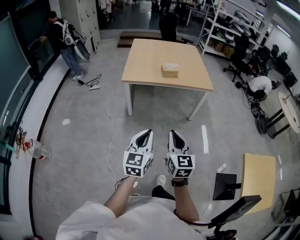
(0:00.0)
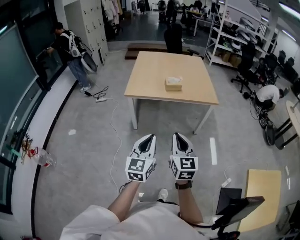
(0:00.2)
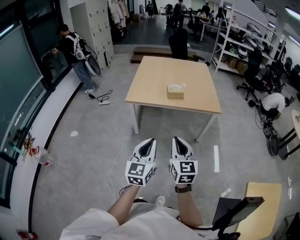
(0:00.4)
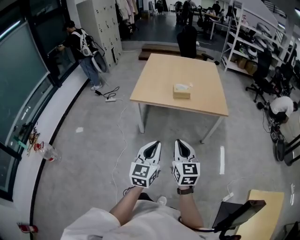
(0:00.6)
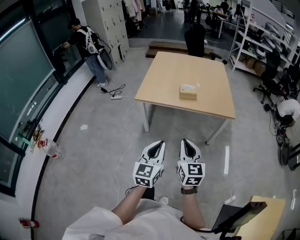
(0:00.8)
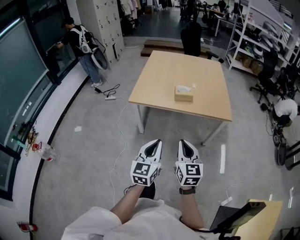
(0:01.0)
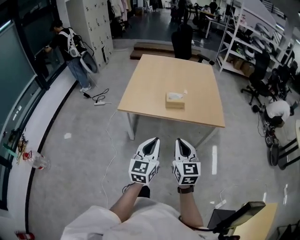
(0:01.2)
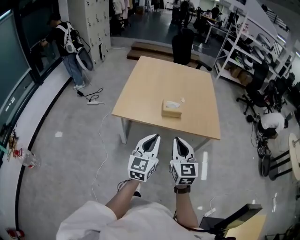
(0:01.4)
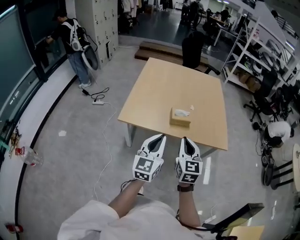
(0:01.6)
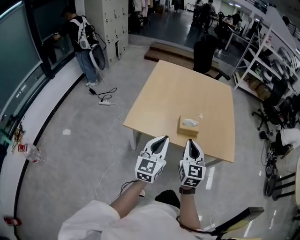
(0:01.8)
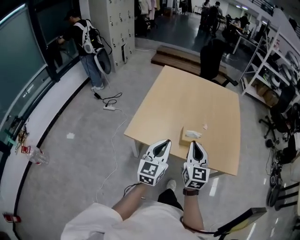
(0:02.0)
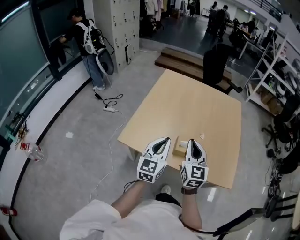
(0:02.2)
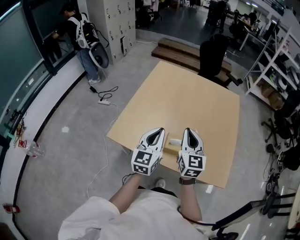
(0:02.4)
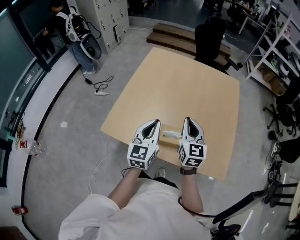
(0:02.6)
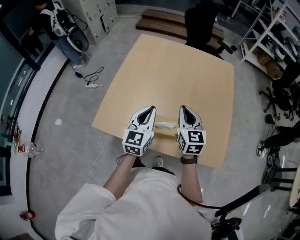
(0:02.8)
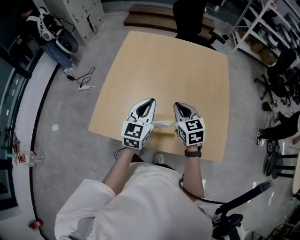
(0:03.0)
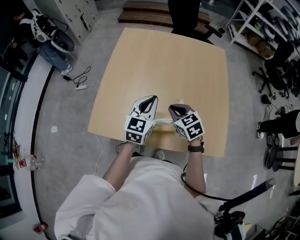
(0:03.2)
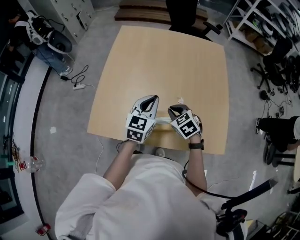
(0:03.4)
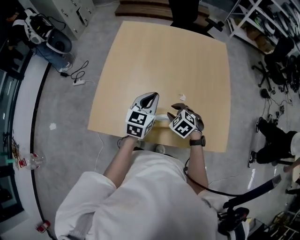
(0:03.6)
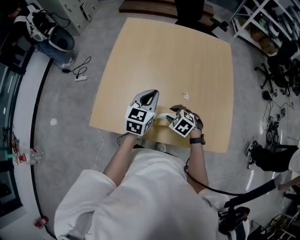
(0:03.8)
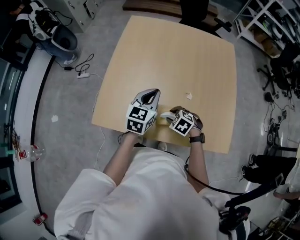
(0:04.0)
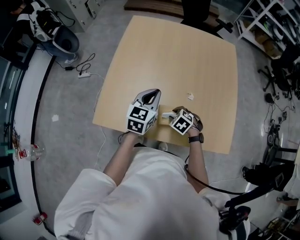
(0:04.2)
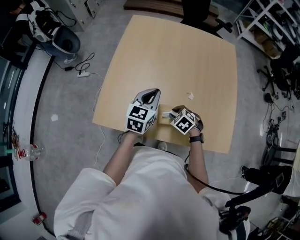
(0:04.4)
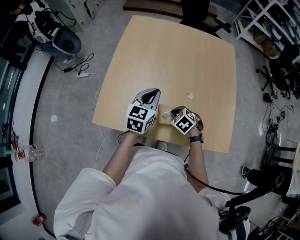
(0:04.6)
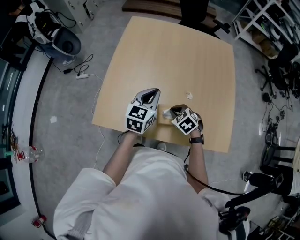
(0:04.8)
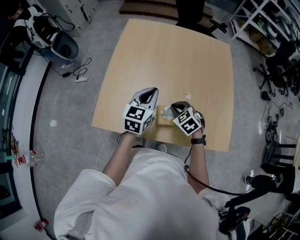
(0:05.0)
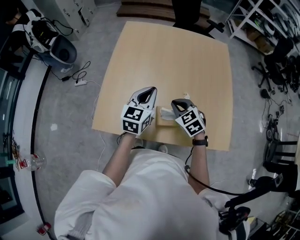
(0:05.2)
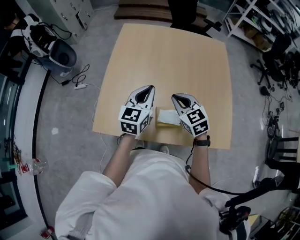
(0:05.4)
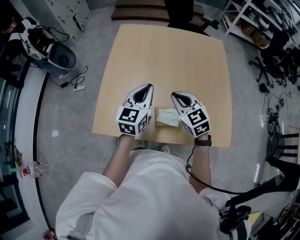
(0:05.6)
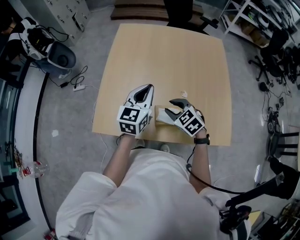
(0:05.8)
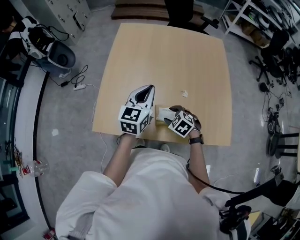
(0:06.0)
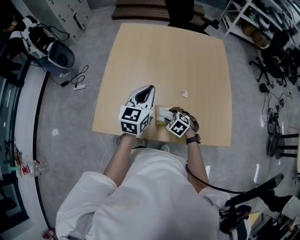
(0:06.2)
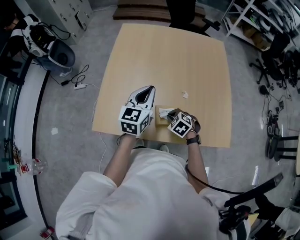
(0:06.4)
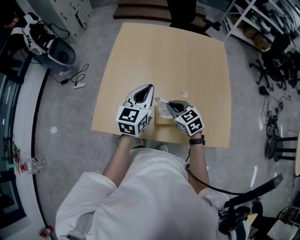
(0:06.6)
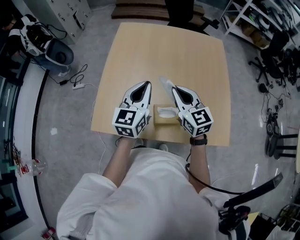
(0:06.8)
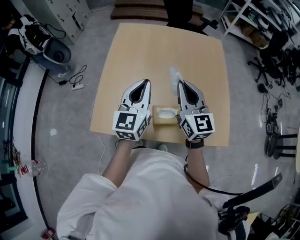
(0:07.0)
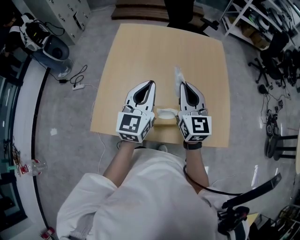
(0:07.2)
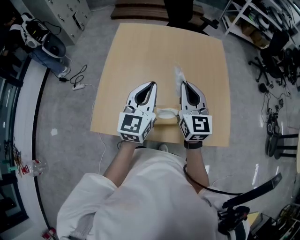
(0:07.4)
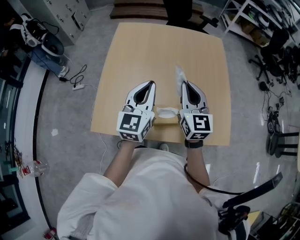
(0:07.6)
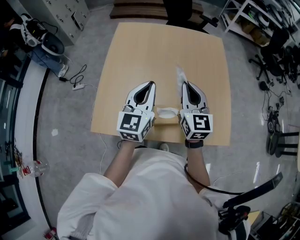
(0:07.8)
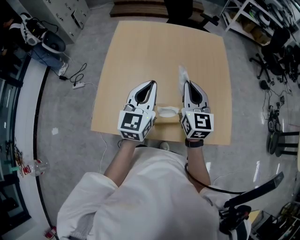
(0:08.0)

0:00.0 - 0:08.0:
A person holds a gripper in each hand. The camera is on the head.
0:00.0 - 0:01.6: The two grippers travel together, forward, approximately 50 cm.
0:01.6 - 0:03.2: The two grippers travel together, forward, roughly 50 cm. The right gripper turns by approximately 40 degrees.
0:03.2 - 0:04.8: The left gripper changes place by some 5 cm; the right gripper goes roughly 10 cm downward, rotates roughly 20 degrees, and opens, then closes again.
0:04.8 - 0:06.4: The right gripper reaches approximately 15 cm upward, then returns, and opens, then closes again.
0:06.4 - 0:08.0: The left gripper travels upward by about 5 cm, while the right gripper shifts some 30 cm upward, and tips its fingers upward by about 60 degrees.

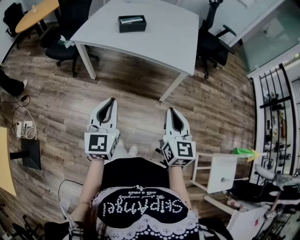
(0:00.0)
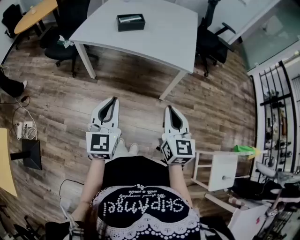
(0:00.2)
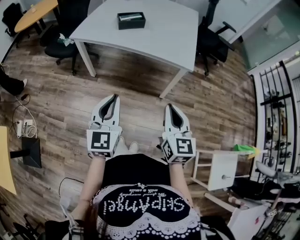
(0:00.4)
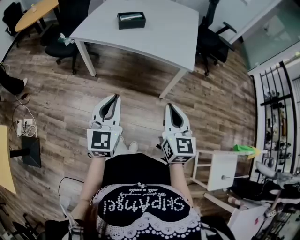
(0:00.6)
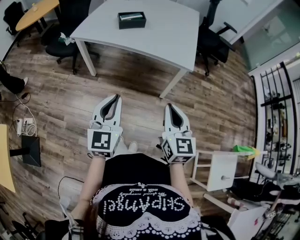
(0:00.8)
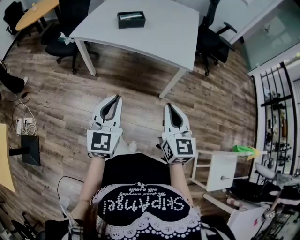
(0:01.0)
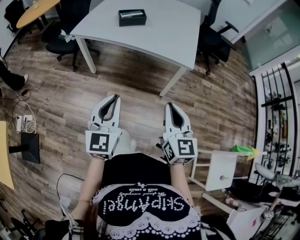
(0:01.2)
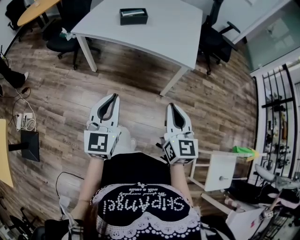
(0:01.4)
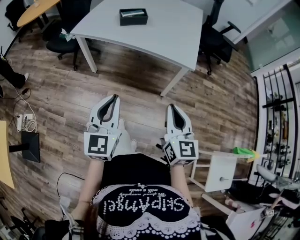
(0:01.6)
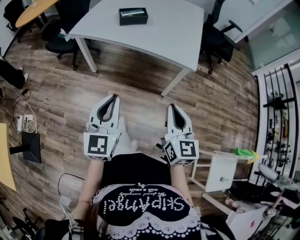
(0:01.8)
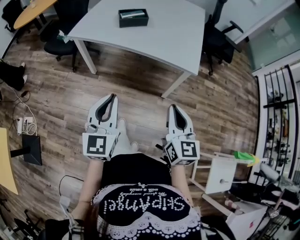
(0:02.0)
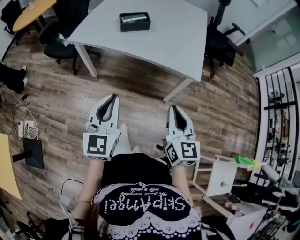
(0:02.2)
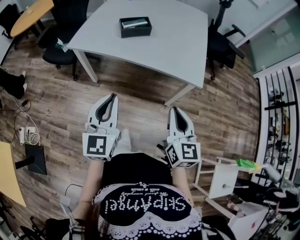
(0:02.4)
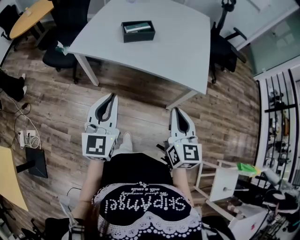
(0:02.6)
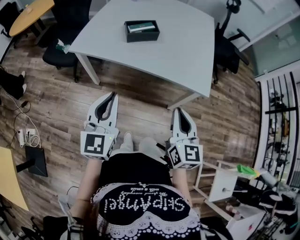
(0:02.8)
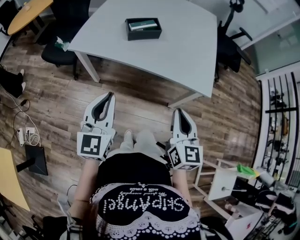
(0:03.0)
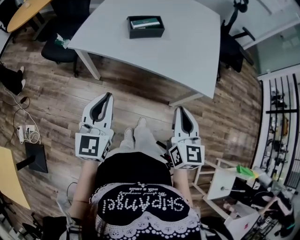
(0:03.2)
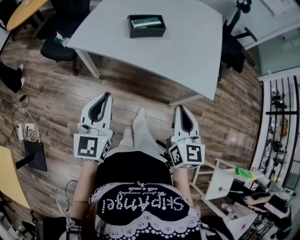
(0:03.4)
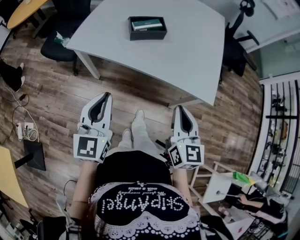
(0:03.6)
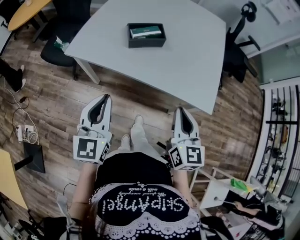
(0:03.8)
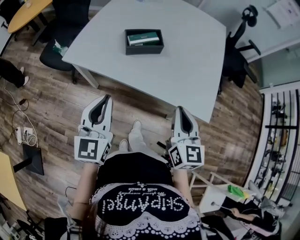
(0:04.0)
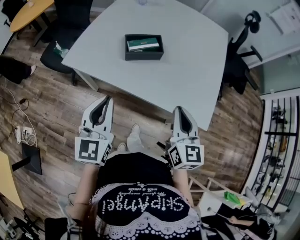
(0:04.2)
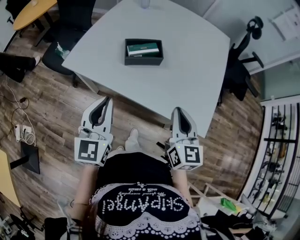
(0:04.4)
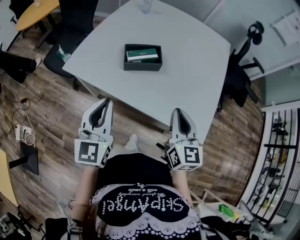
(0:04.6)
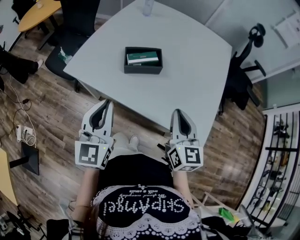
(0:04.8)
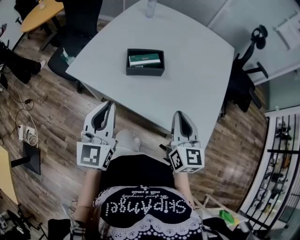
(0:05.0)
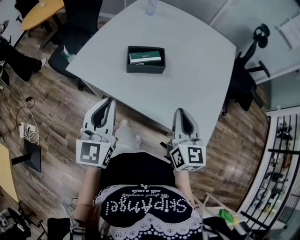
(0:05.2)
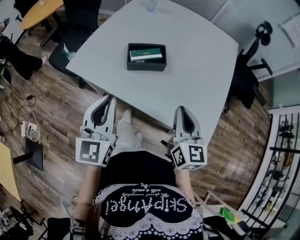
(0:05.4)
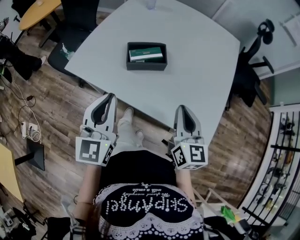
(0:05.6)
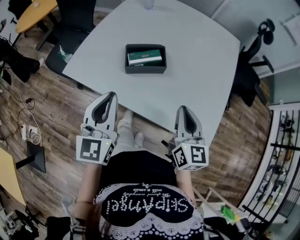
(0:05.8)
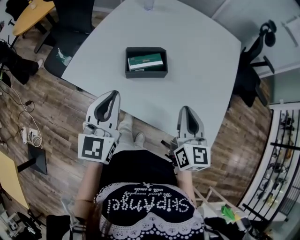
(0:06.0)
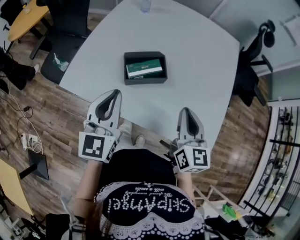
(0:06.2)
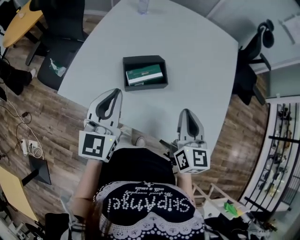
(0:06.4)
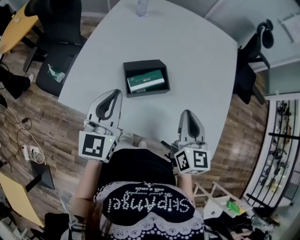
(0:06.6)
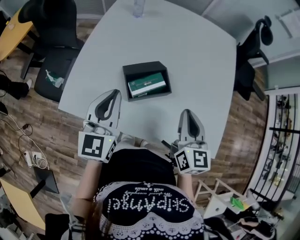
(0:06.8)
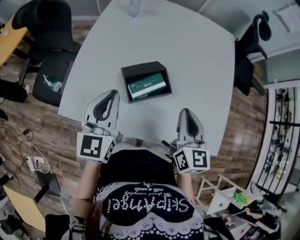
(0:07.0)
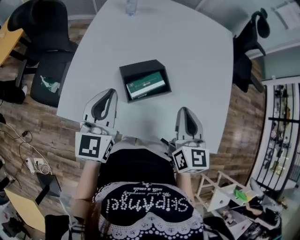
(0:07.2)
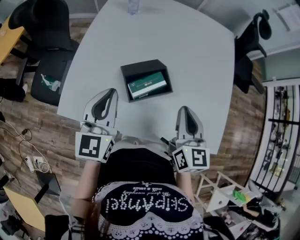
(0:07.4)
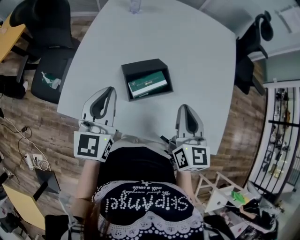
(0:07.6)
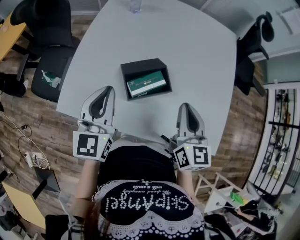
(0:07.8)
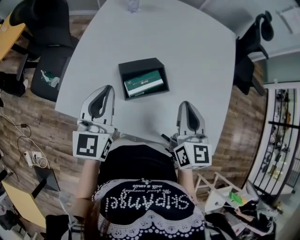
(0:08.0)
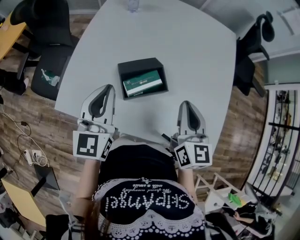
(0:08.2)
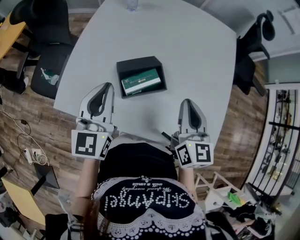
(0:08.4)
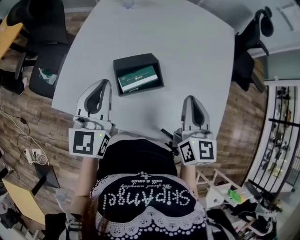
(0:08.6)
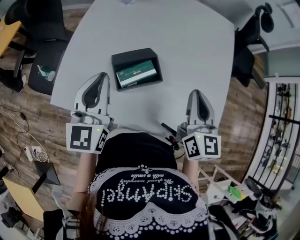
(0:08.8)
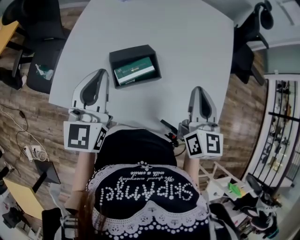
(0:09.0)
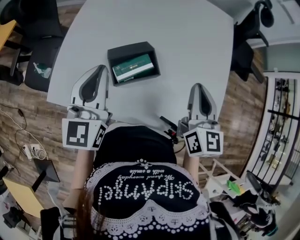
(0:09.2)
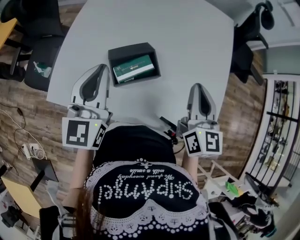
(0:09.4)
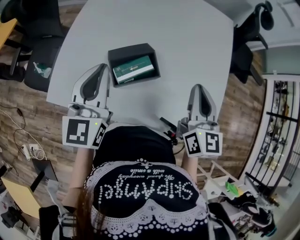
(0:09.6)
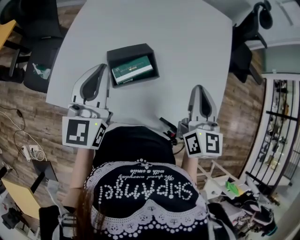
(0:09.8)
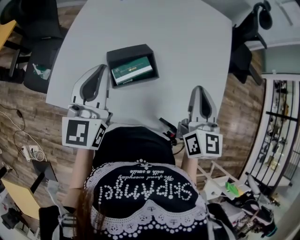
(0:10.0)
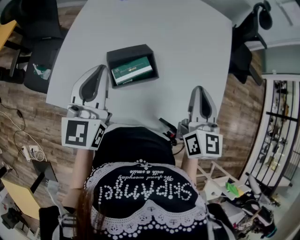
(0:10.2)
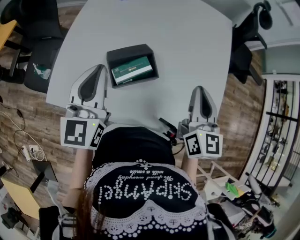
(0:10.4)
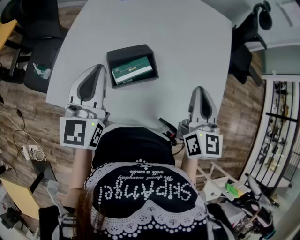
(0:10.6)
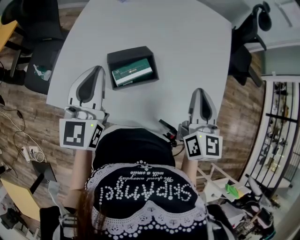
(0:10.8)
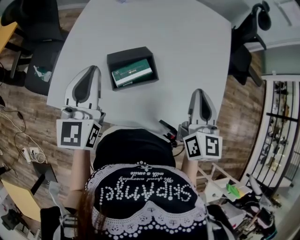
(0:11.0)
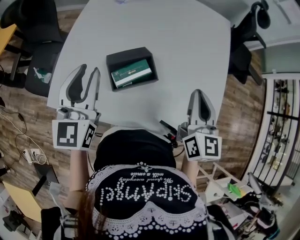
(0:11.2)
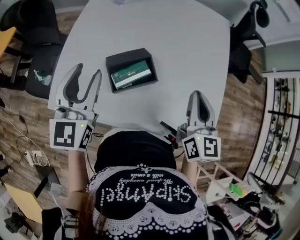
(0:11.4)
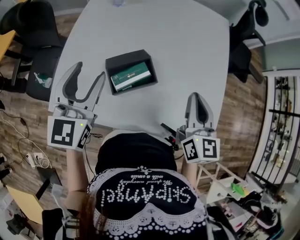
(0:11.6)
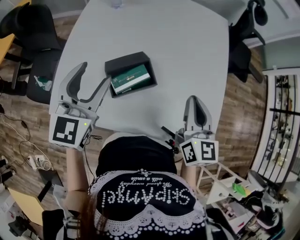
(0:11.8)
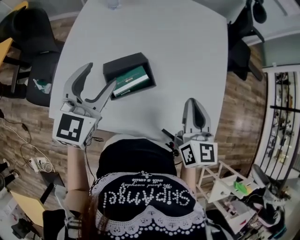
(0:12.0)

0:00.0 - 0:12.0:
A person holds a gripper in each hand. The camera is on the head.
0:00.0 - 0:01.6: The grippers make only small movements.
0:01.6 - 0:03.0: The left gripper shifts some 25 cm forward and to the left; the right gripper moves forward, some 20 cm.
0:03.0 - 0:04.4: The two grippers go roughly 20 cm forward.
0:04.4 - 0:06.0: The grippers both shift forward by approximately 10 cm.
0:06.0 - 0:07.6: The grippers both shift forward and to the left by roughly 15 cm.
0:07.6 - 0:09.0: The left gripper changes place by about 5 cm; the right gripper travels to the right by about 10 cm.
0:09.0 - 0:10.4: Both grippers stay put.
0:10.4 - 0:12.0: The left gripper rotates approximately 20 degrees, and opens.

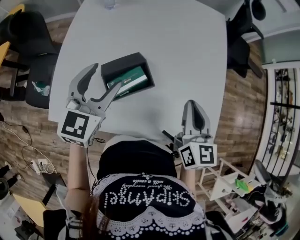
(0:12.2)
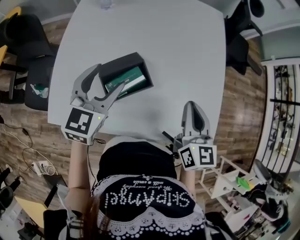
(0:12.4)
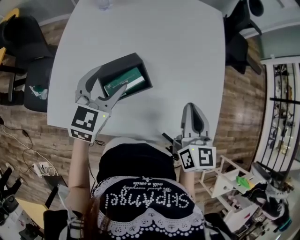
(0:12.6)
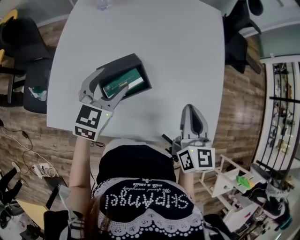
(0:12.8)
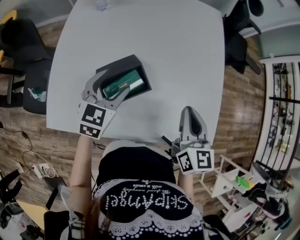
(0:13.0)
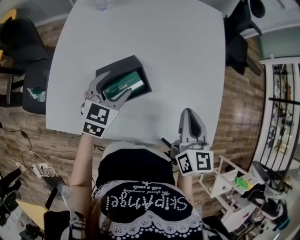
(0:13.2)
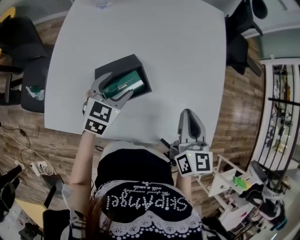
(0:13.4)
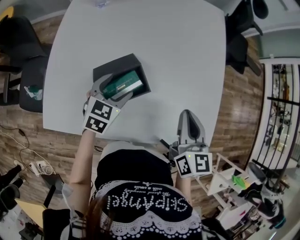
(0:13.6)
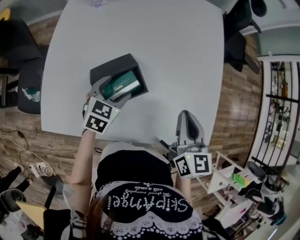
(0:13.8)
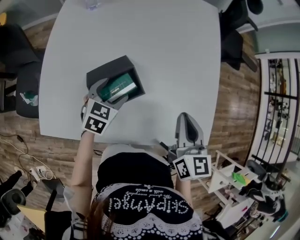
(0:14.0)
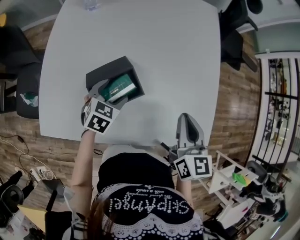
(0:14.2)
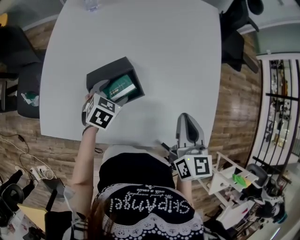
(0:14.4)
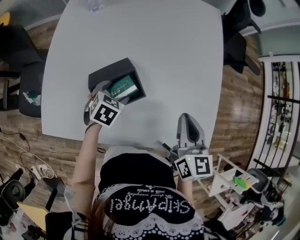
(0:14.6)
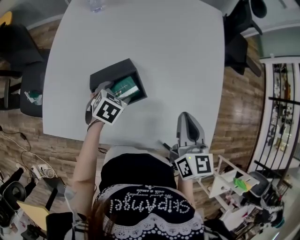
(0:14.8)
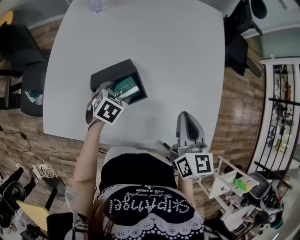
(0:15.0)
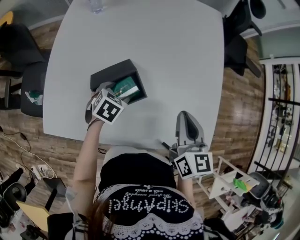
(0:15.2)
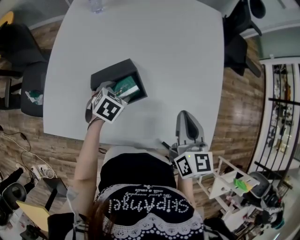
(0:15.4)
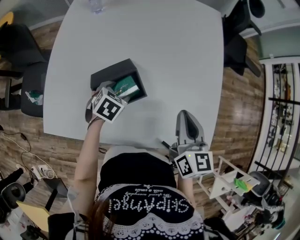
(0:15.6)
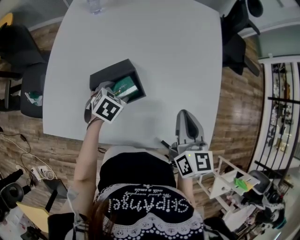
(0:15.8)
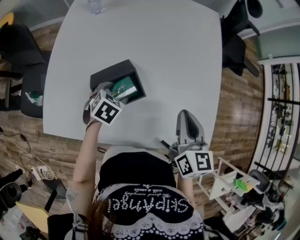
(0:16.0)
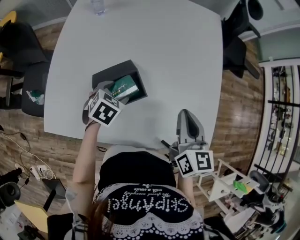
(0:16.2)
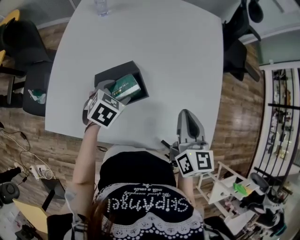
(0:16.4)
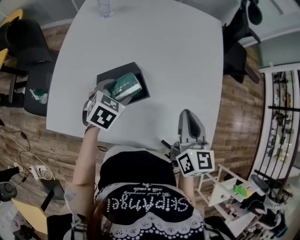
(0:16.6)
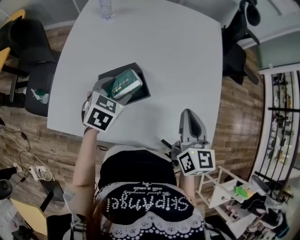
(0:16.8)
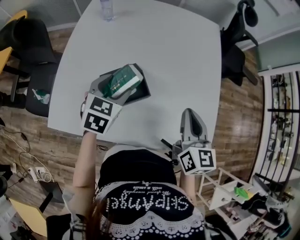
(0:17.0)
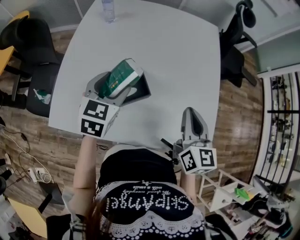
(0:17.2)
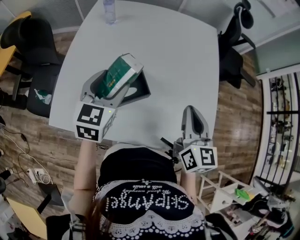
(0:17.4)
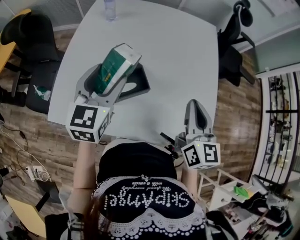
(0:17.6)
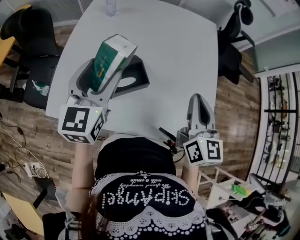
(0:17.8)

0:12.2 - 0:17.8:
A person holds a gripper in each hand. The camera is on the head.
0:12.2 - 0:13.6: The left gripper shifts approximately 15 cm downward, and turns by roughly 20 degrees.
0:13.6 - 0:15.0: The left gripper is displaced downward by approximately 10 cm, and changes its angle by approximately 20 degrees.
0:15.0 - 0:16.4: The left gripper heads upward, covering about 5 cm.
0:16.4 - 0:17.8: The right gripper travels upward by roughly 10 cm, while the left gripper is displaced upward by some 25 cm, and angles its fingers upward, by some 50 degrees.
